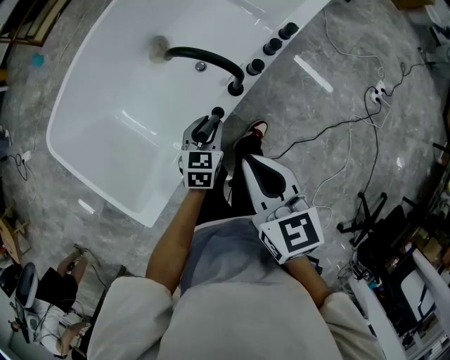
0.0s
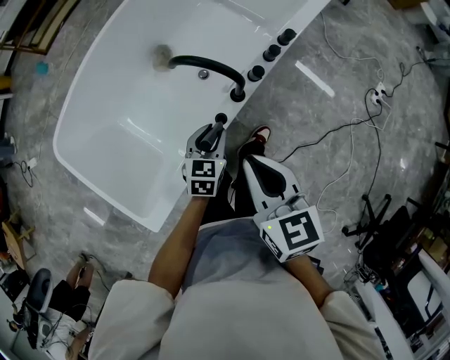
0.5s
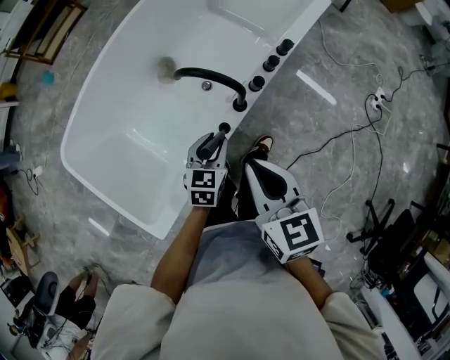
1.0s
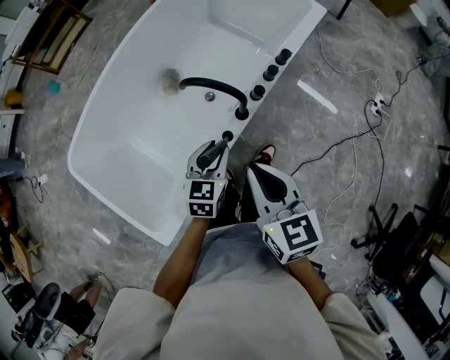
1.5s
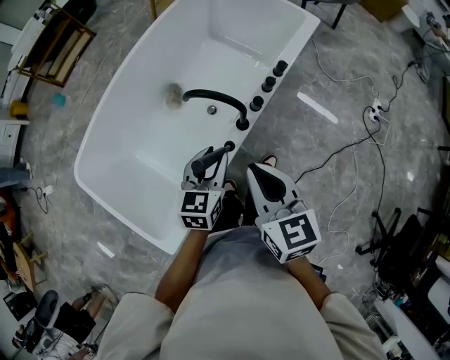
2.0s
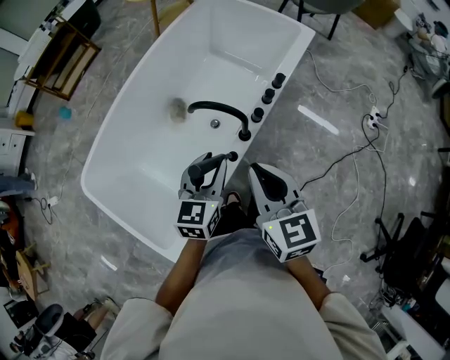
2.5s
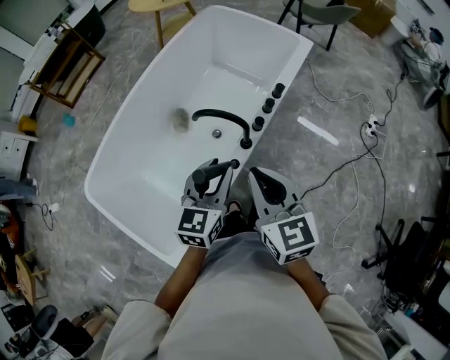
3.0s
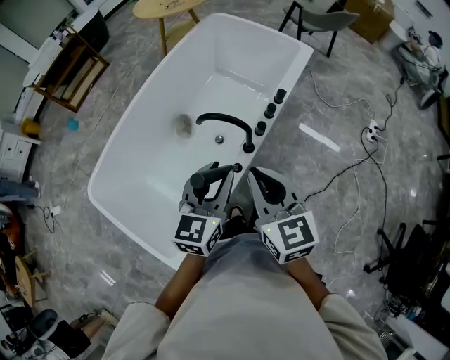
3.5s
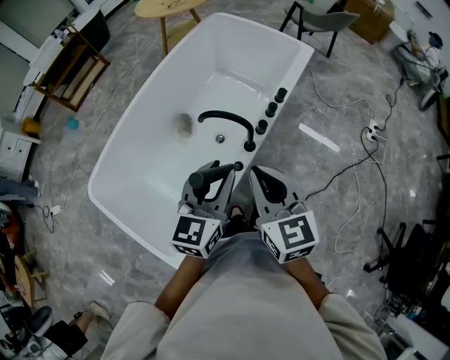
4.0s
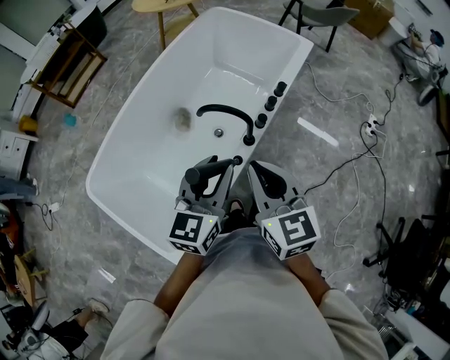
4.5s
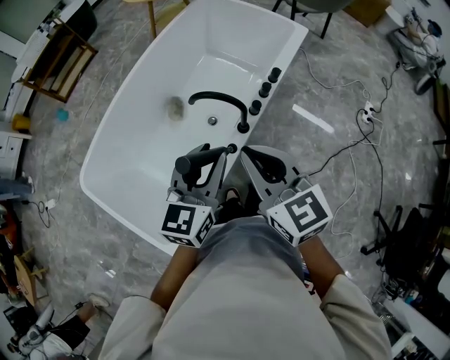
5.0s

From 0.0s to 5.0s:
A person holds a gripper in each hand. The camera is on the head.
From 0.0s to 2.5s: The right gripper is displaced upward by some 10 cm. Meanwhile the left gripper goes some 20 cm upward.
From 2.5s to 5.0s: The right gripper changes place by some 5 cm. The left gripper shifts about 10 cm upward.

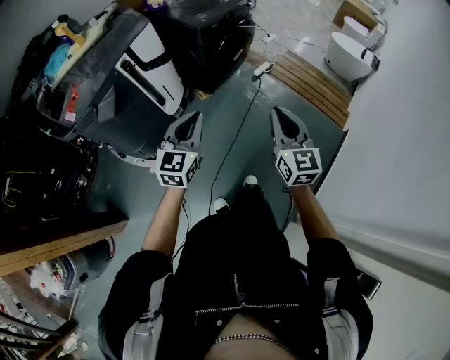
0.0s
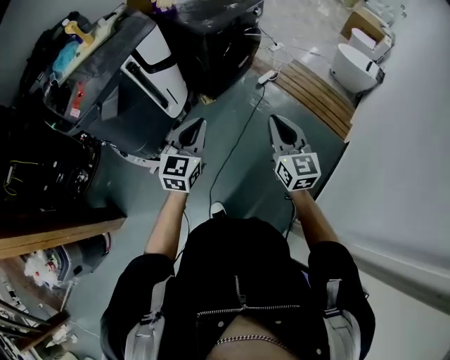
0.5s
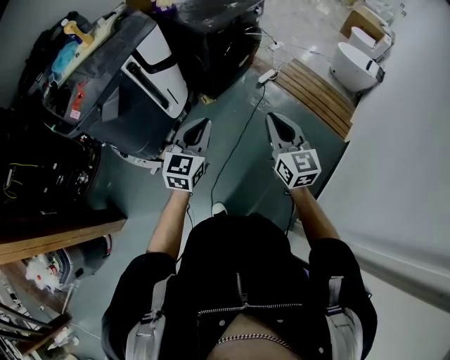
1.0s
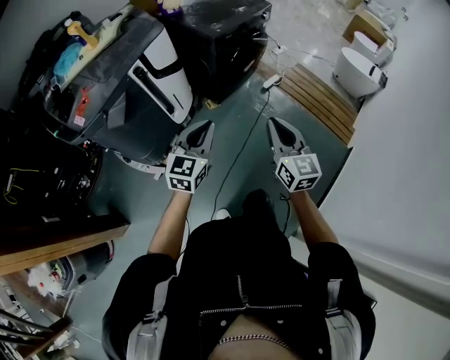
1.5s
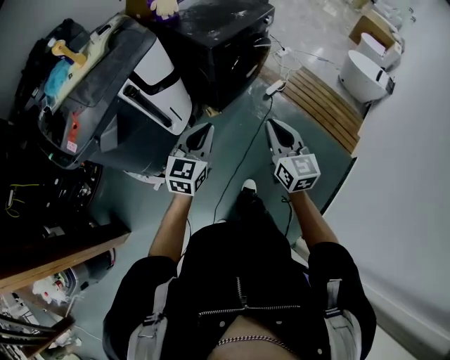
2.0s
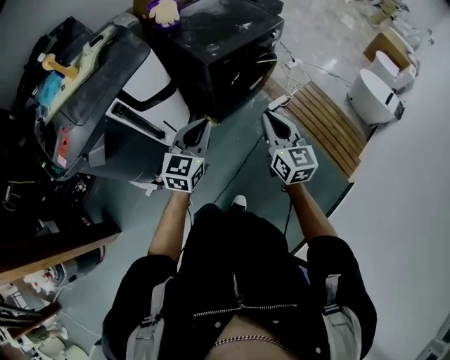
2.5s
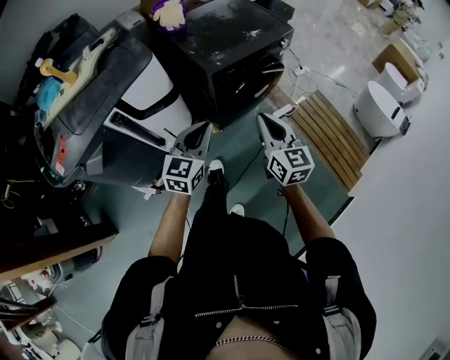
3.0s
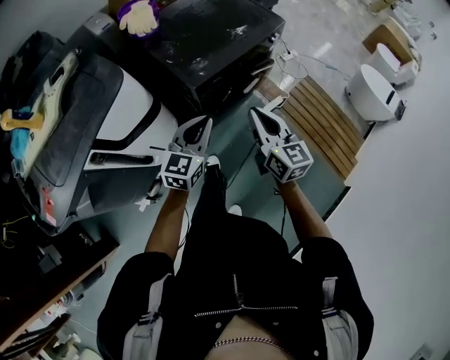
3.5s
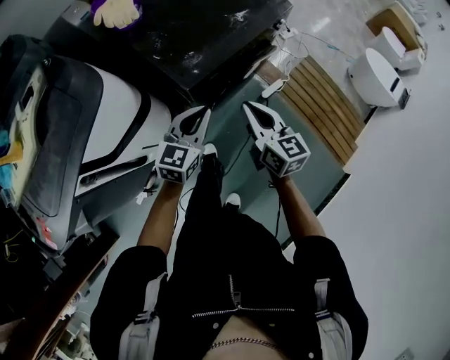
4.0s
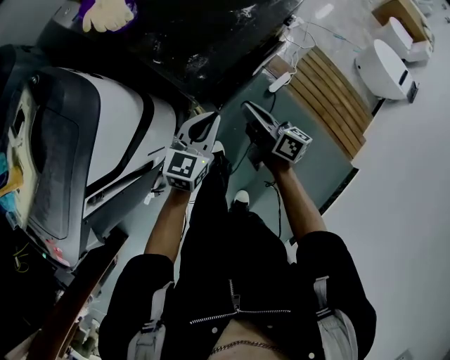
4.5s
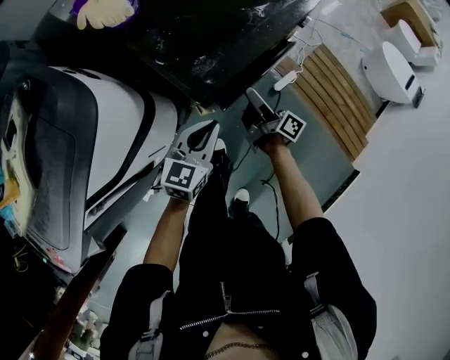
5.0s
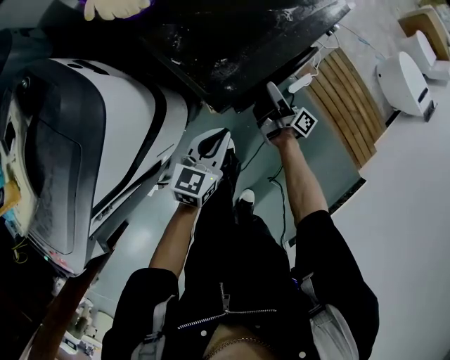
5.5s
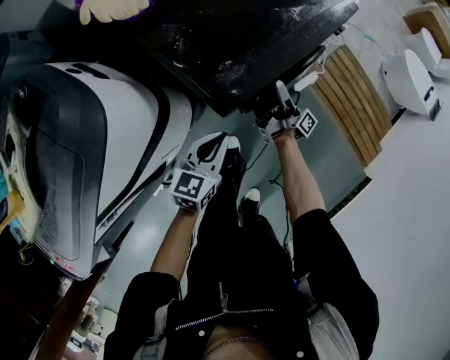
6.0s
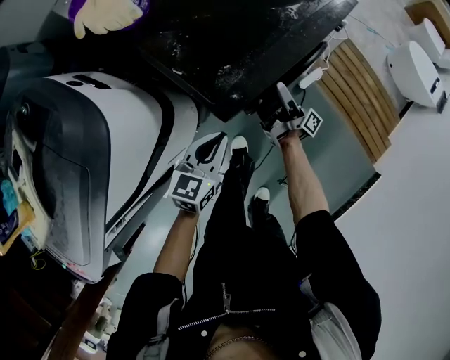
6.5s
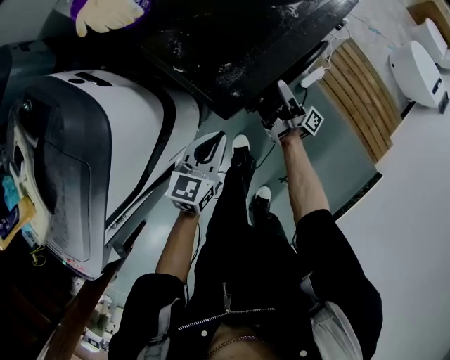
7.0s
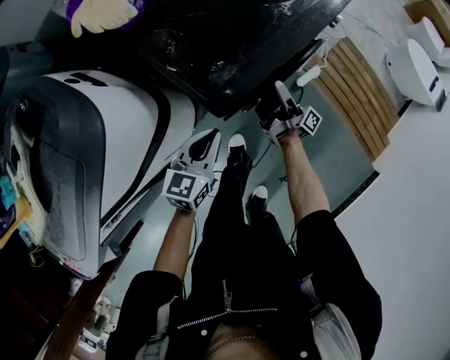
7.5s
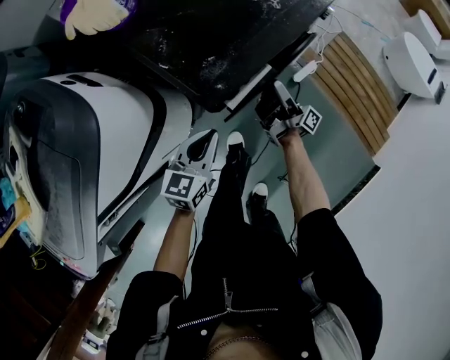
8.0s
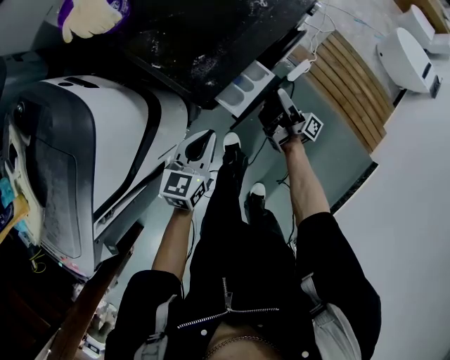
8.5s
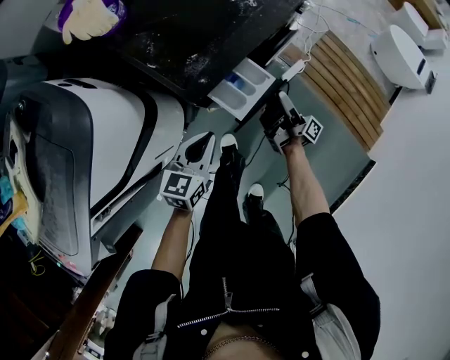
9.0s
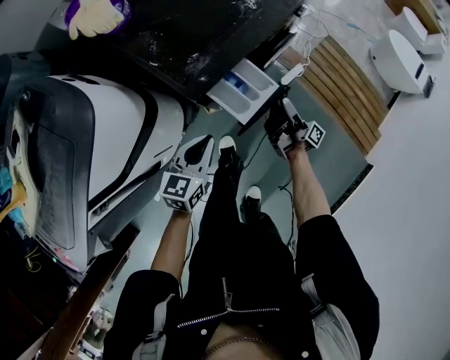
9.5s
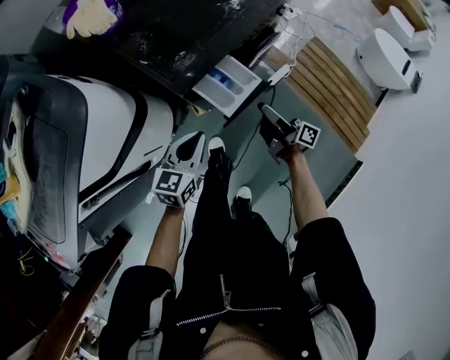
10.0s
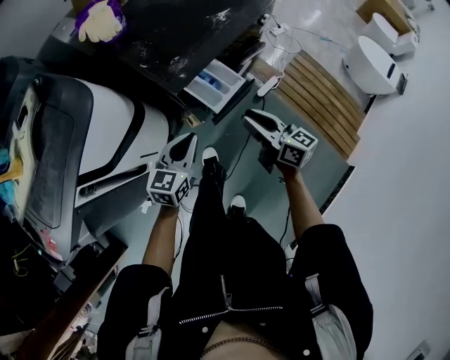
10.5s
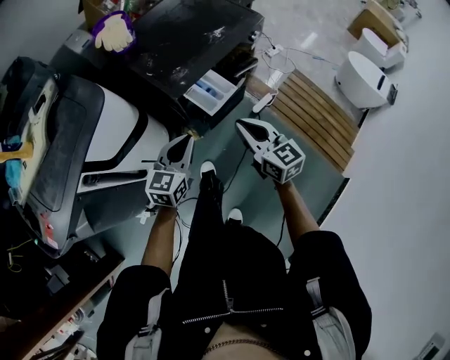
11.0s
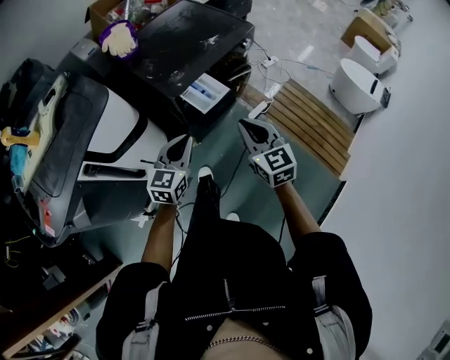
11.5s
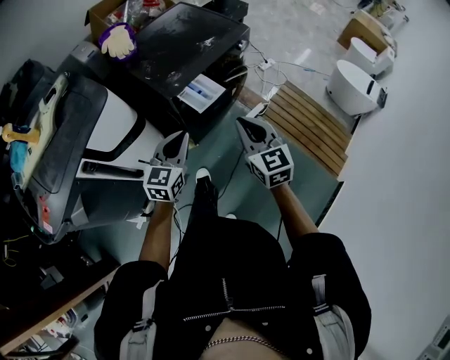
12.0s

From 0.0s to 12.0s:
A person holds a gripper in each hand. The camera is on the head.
From 0.0s to 2.0s: The grippers both shift forward by about 15 cm.
From 2.0s to 4.0s: The pair of grippers is taken forward, some 40 cm.
From 4.0s to 6.0s: The right gripper moves downward and forward, roughly 30 cm, rotates around the line of its fingers by about 70 degrees, clockwise from behind, and opens its fingers. Meanwhile the left gripper shifts approximately 15 cm downward and to the left.
From 6.0s to 8.0s: The grippers stay close to where they were, moving slightly.
From 8.0s to 10.0s: The left gripper travels backward by roughly 5 cm. The right gripper is displaced backward and to the right by approximately 15 cm, and rotates about 20 degrees.
From 10.0s to 12.0s: The left gripper is displaced upward and backward by some 20 cm, and changes its angle by about 20 degrees, while the right gripper goes some 30 cm upward and backward, rolls counterclockwise, seen from behind, by about 80 degrees, and closes its fingers.

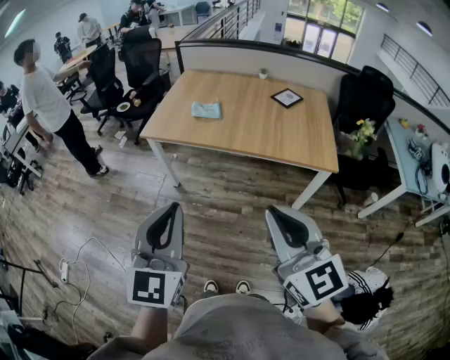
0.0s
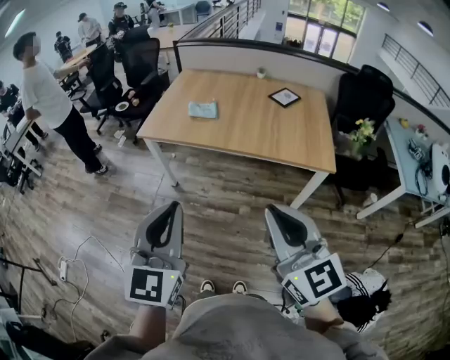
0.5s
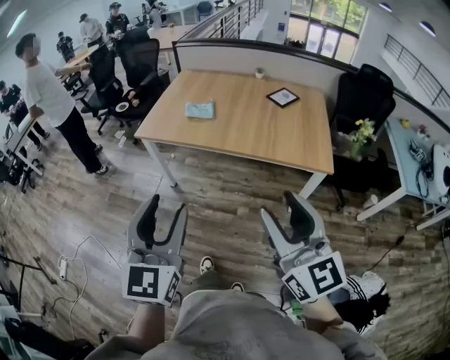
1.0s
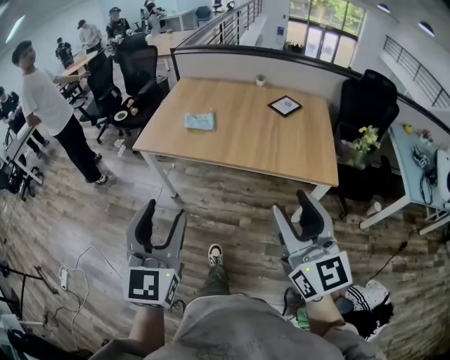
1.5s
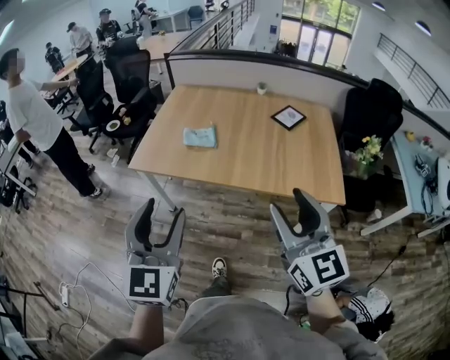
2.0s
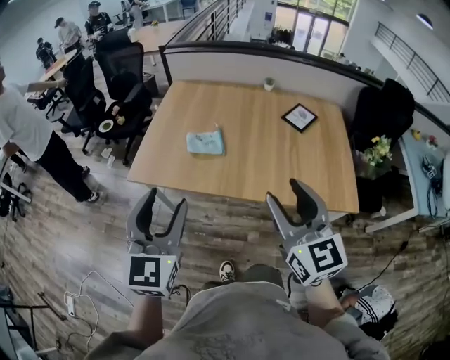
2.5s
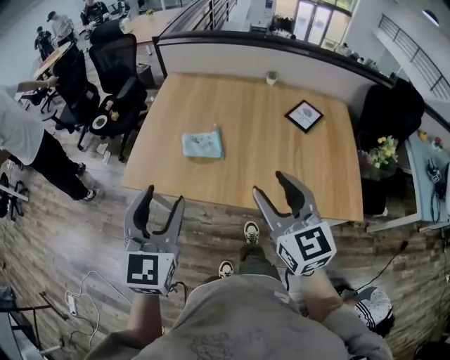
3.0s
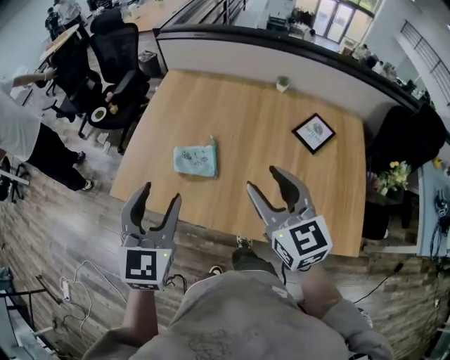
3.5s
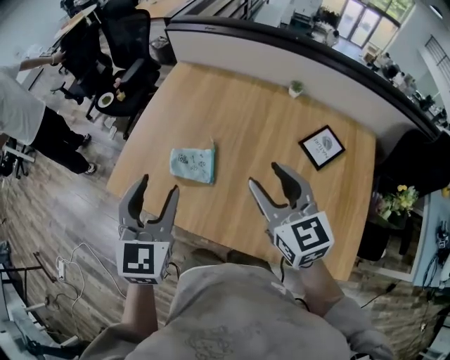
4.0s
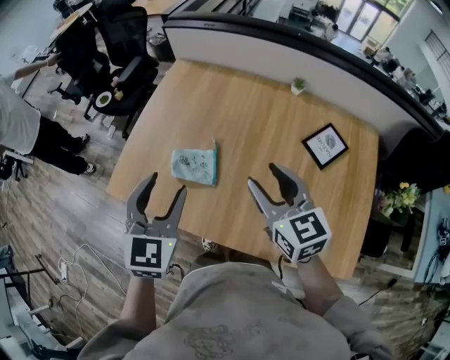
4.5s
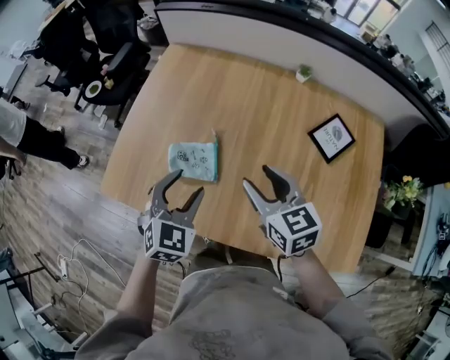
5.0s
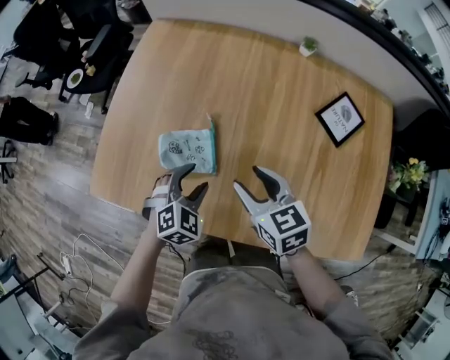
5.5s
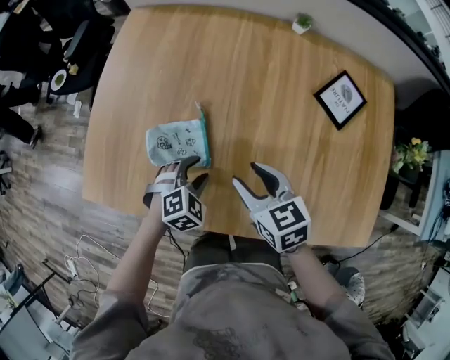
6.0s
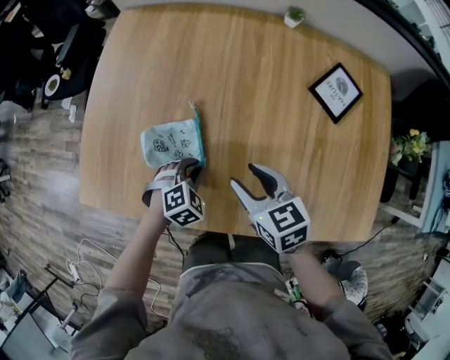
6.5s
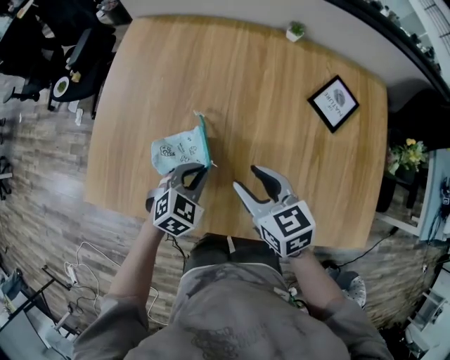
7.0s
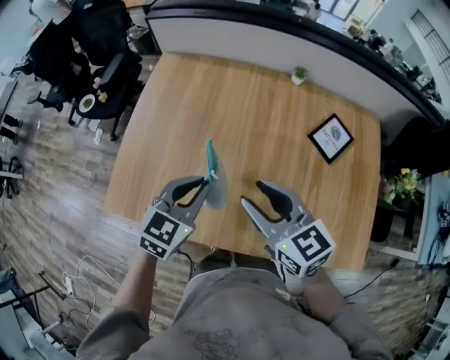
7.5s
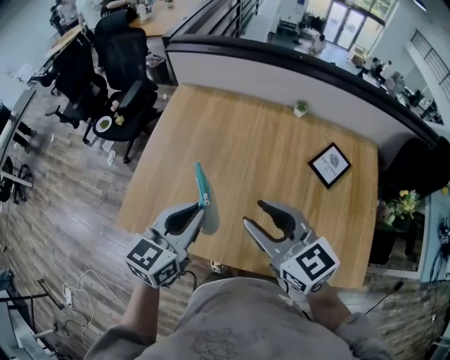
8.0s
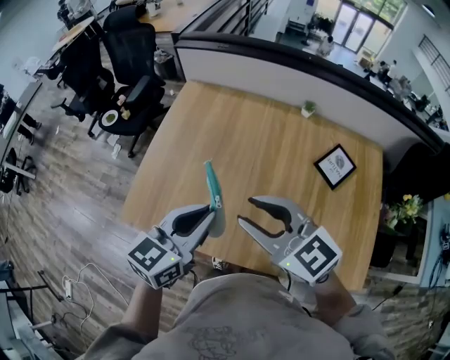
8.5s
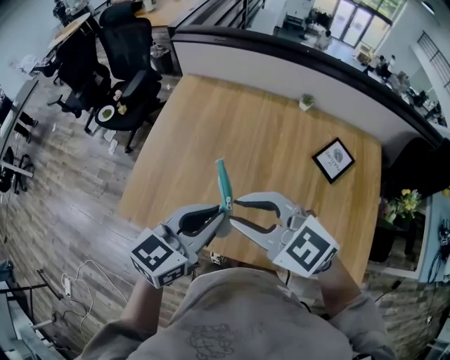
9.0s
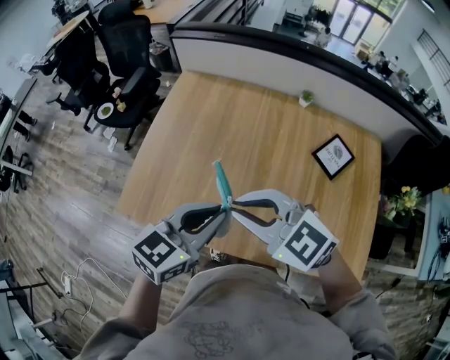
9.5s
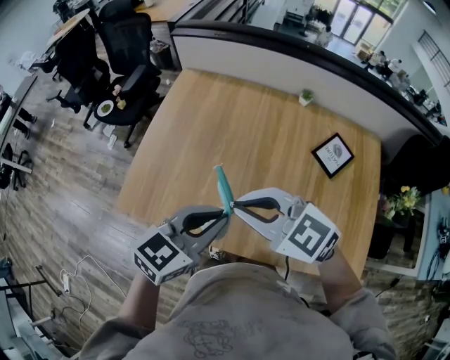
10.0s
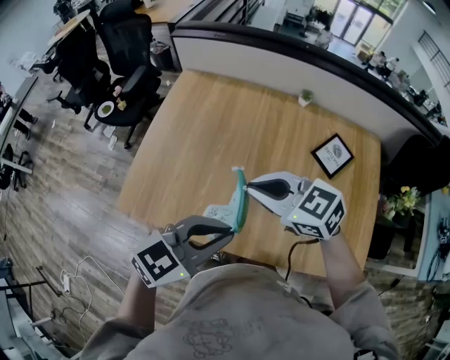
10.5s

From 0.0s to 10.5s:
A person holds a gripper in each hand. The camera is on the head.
From 0.0s to 2.0s: Both grippers move forward, some 20 cm. The right gripper opens; the left gripper opens.
From 2.0s to 4.0s: The pair of grippers is taken forward, roughly 50 cm. The right gripper rotates about 20 degrees.
From 4.0s to 6.5s: The left gripper shifts some 40 cm downward, points its fingers some 50 degrees further downward, and closes. The right gripper shifts some 25 cm downward, and turns by approximately 30 degrees.
From 6.5s to 8.5s: Both grippers travel together upward, roughly 30 cm. The left gripper tilts its fingers about 50 degrees upward; the right gripper swivels approximately 40 degrees.
From 8.5s to 10.5s: The right gripper ends up about 5 cm from where it was, and closes, while the left gripper ends up roughly 10 cm from where it was, and swivels roughly 30 degrees.
